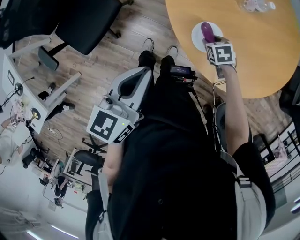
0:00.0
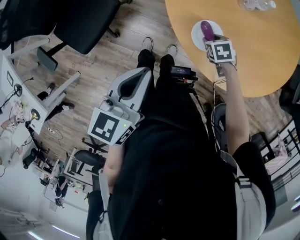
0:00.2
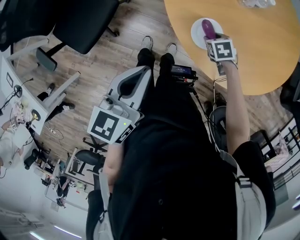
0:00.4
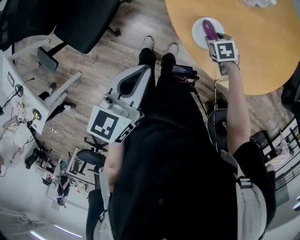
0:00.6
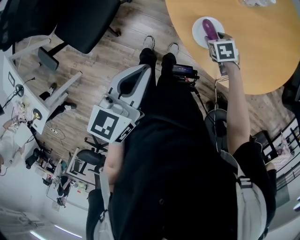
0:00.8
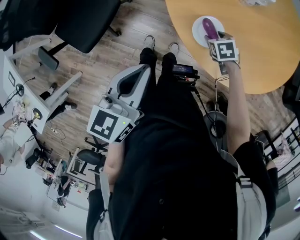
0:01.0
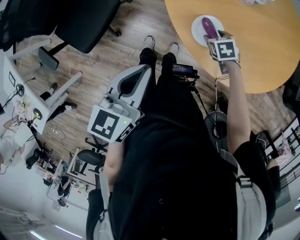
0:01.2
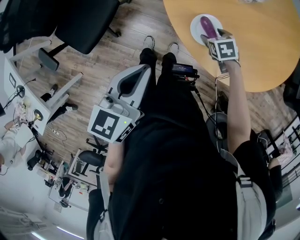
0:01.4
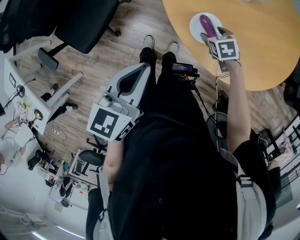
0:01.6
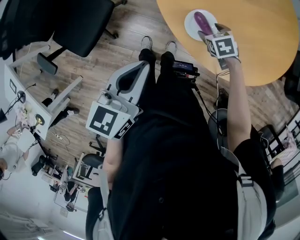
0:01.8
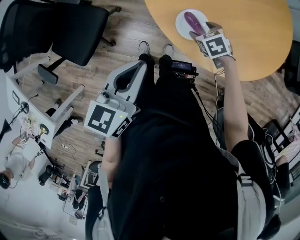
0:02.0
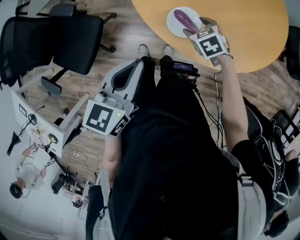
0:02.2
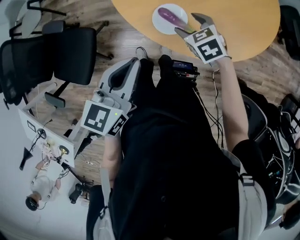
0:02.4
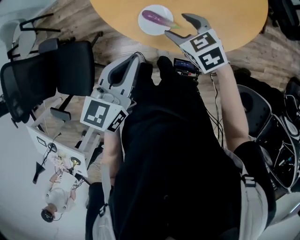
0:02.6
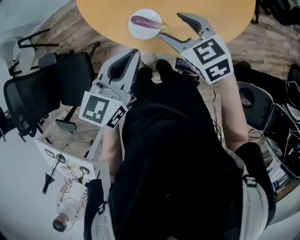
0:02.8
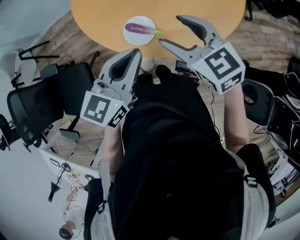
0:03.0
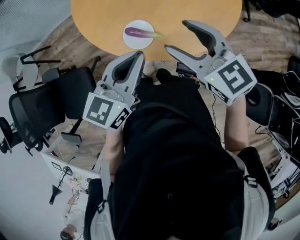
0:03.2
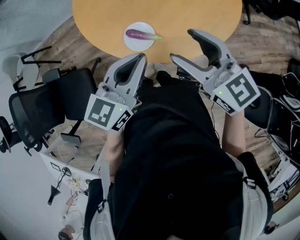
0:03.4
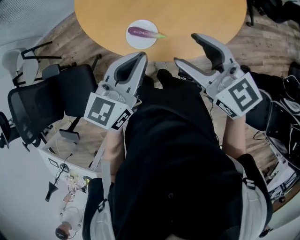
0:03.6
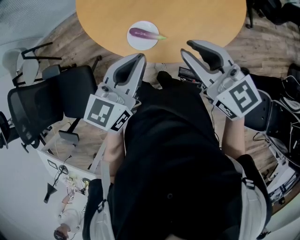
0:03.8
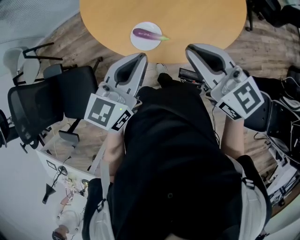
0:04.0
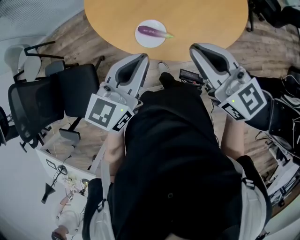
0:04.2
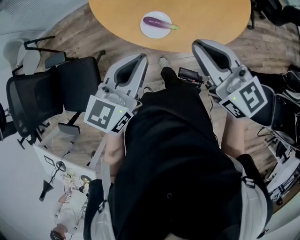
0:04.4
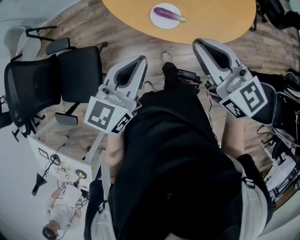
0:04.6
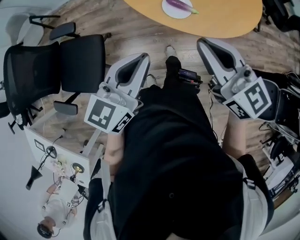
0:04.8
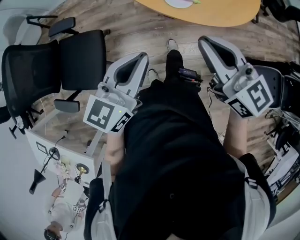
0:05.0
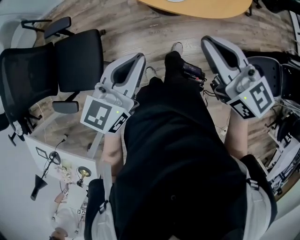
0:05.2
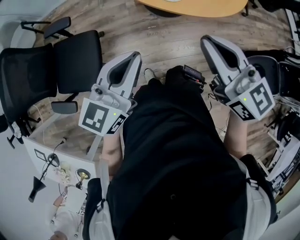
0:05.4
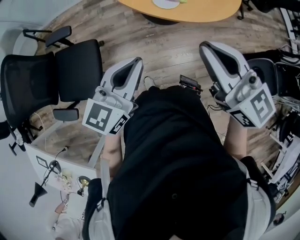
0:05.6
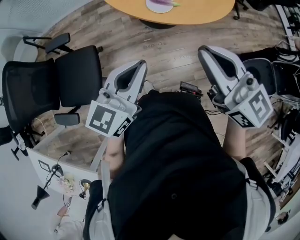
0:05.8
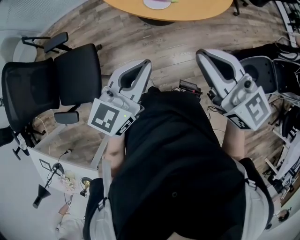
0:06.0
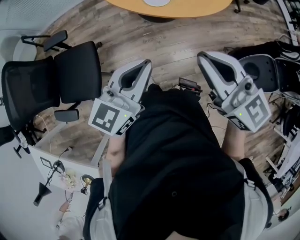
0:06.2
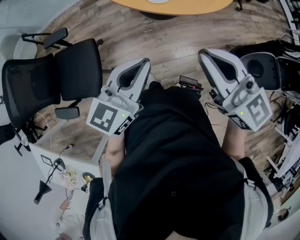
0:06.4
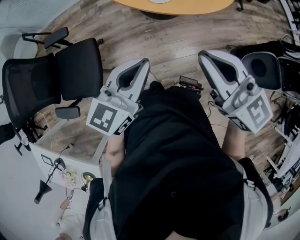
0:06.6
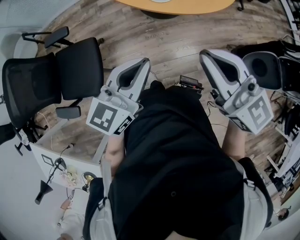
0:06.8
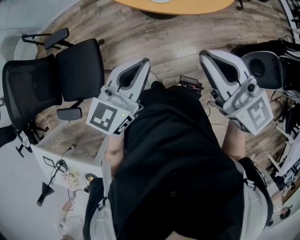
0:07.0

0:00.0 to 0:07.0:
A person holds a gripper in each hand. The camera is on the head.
0:00.0 to 0:01.4: The right gripper opens up.
0:01.4 to 0:02.8: The left gripper changes place by about 20 cm, and changes its angle by approximately 40 degrees, while the right gripper is displaced upward by roughly 20 cm, and tips its fingers upward by approximately 30 degrees.
0:02.8 to 0:04.2: The right gripper shifts about 15 cm upward and backward, changes its angle by some 30 degrees, and closes, while the left gripper is displaced upward by some 5 cm.
0:04.2 to 0:05.6: Both grippers travel together backward and to the left, roughly 30 cm.

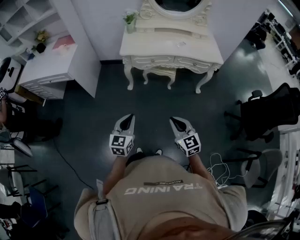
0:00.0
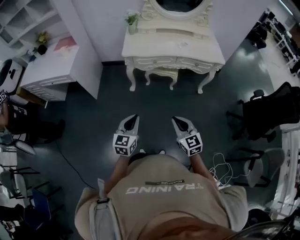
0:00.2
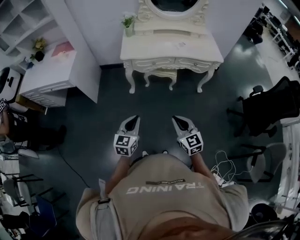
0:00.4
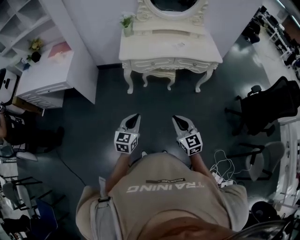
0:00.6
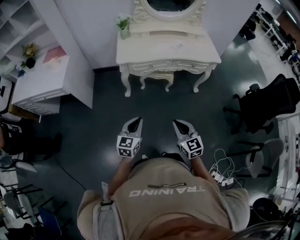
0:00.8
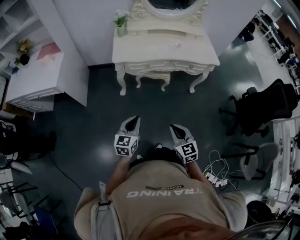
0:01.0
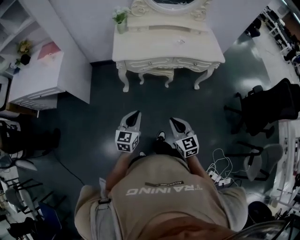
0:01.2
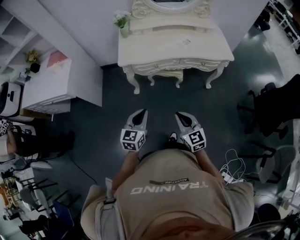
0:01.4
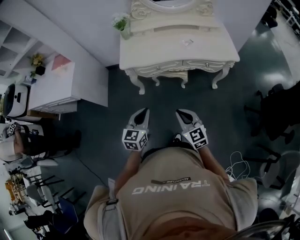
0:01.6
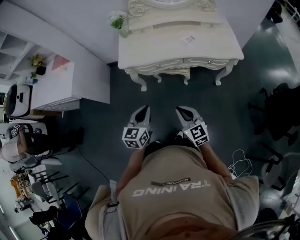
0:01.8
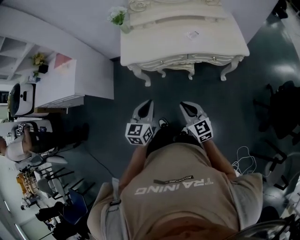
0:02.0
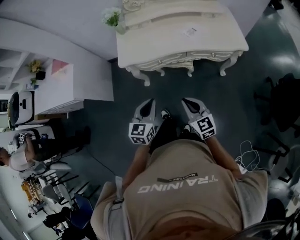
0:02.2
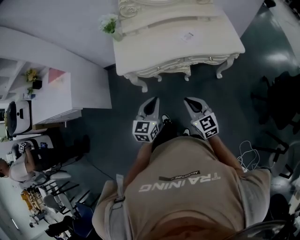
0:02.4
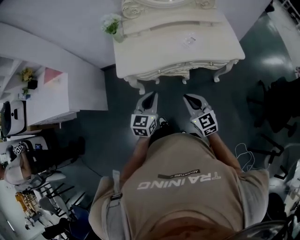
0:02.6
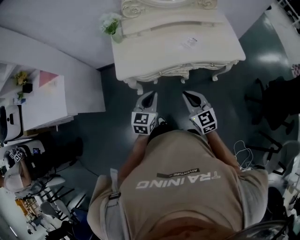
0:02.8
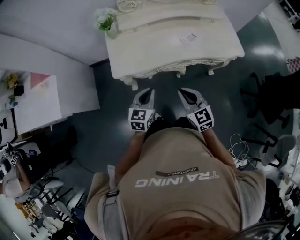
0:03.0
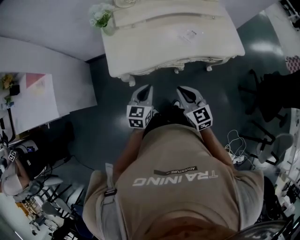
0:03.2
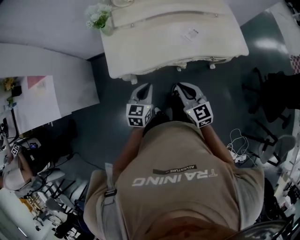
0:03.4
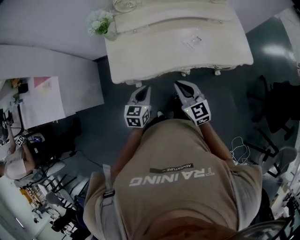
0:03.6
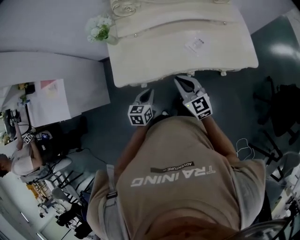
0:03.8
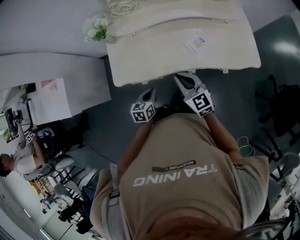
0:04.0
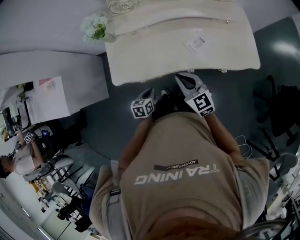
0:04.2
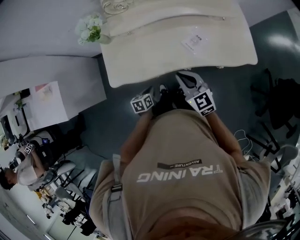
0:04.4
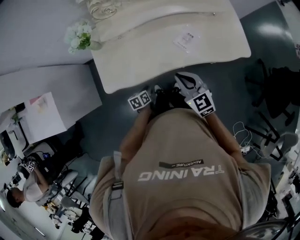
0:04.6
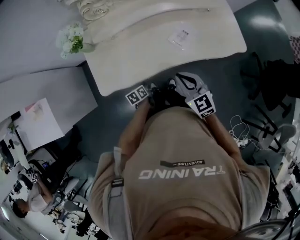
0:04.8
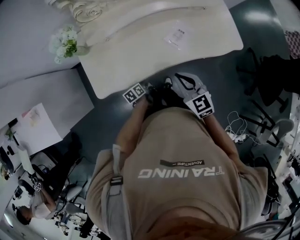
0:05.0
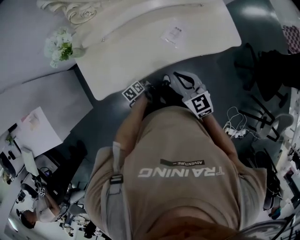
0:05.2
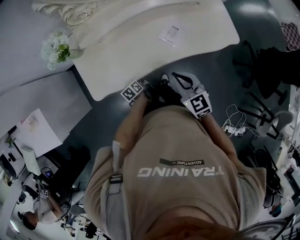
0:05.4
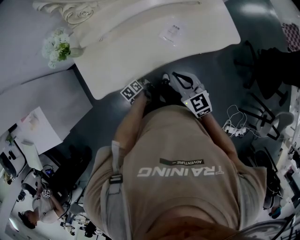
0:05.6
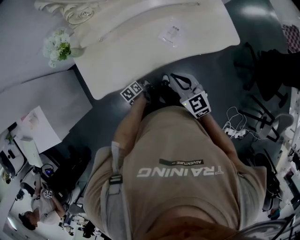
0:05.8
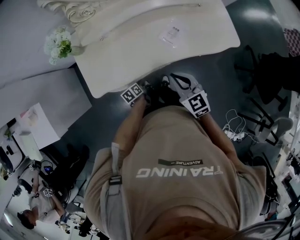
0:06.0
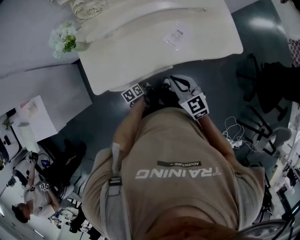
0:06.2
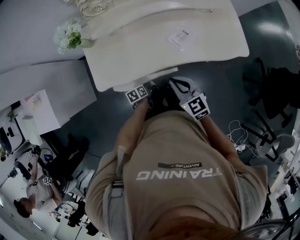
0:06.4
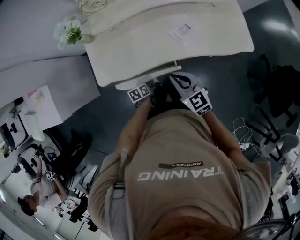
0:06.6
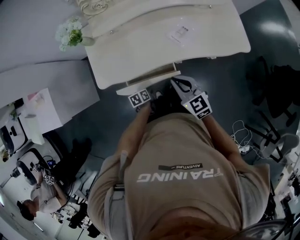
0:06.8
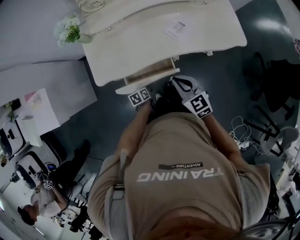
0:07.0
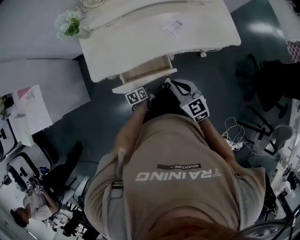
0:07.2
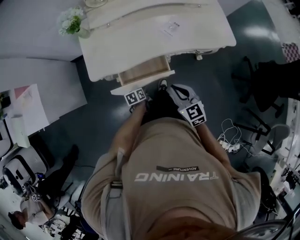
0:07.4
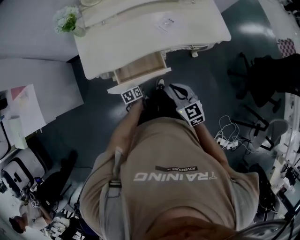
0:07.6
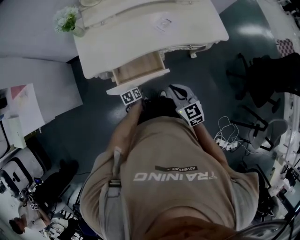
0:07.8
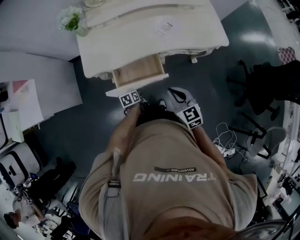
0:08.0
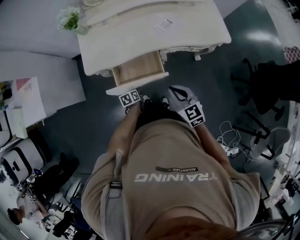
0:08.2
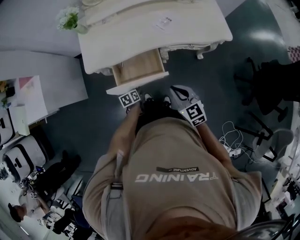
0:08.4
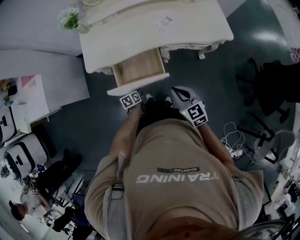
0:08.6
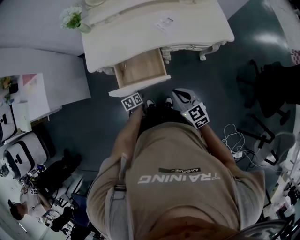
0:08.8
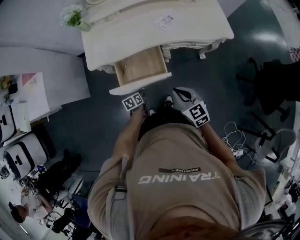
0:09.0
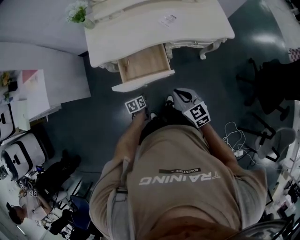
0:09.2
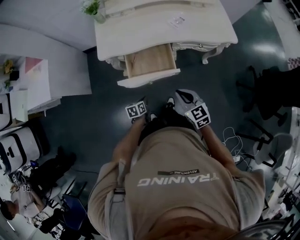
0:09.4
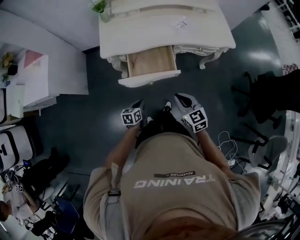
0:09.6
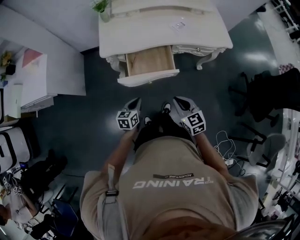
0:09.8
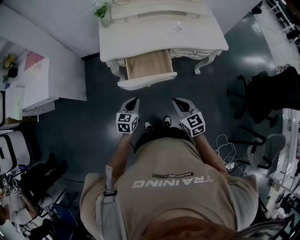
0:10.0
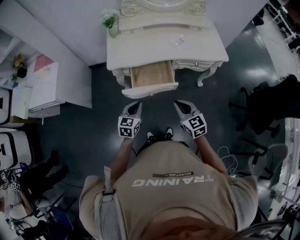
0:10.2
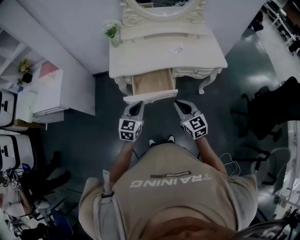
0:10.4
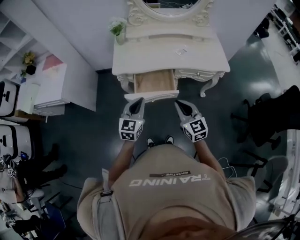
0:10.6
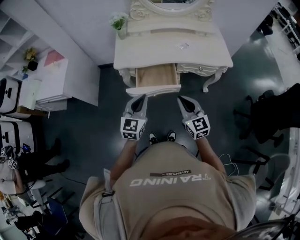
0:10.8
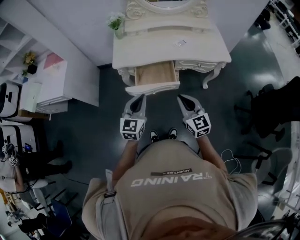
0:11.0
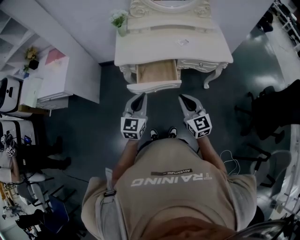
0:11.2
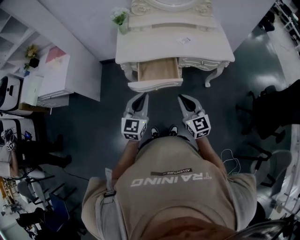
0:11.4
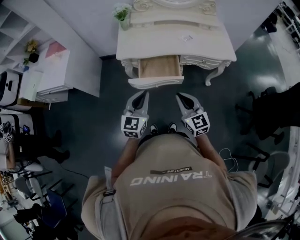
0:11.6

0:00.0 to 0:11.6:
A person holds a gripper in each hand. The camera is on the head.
0:00.0 to 0:01.4: The two grippers go approximately 20 cm forward.
0:01.4 to 0:02.8: Both grippers travel together forward, approximately 25 cm.
0:02.8 to 0:04.4: The right gripper heads forward, covering approximately 25 cm. Meanwhile the left gripper goes about 30 cm downward and forward, and rotates some 40 degrees.
0:04.4 to 0:05.8: The right gripper moves approximately 5 cm, while the left gripper moves downward and forward, approximately 10 cm, and opens.
0:05.8 to 0:07.2: Both grippers move backward, approximately 15 cm.
0:07.2 to 0:08.8: The right gripper is displaced backward and to the right by some 15 cm. The left gripper shifts approximately 10 cm backward.
0:08.8 to 0:10.2: The left gripper travels upward and backward by some 30 cm, turns by approximately 50 degrees, and closes up, while the right gripper heads backward, to the left and upward, covering roughly 20 cm.
0:10.2 to 0:11.6: The right gripper shifts about 5 cm upward. The left gripper goes about 15 cm upward, and changes its angle by some 20 degrees.

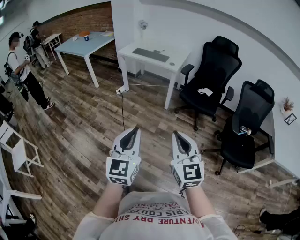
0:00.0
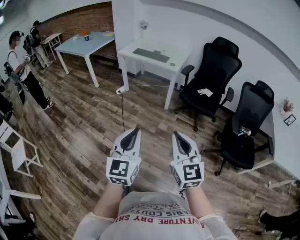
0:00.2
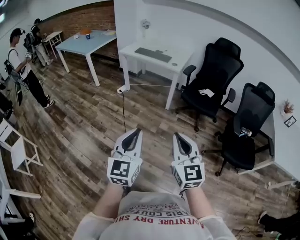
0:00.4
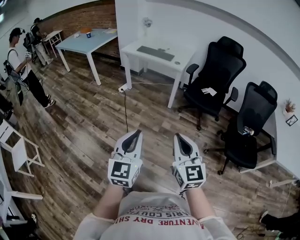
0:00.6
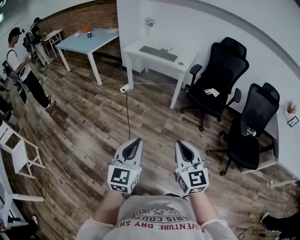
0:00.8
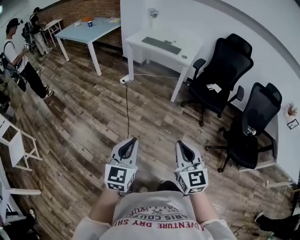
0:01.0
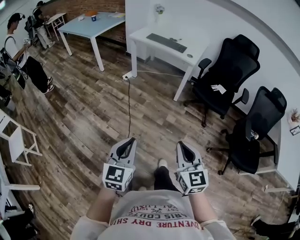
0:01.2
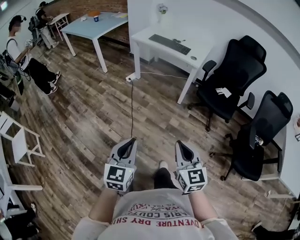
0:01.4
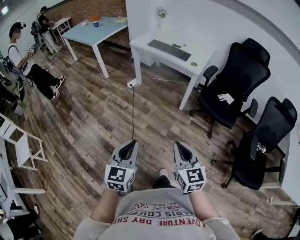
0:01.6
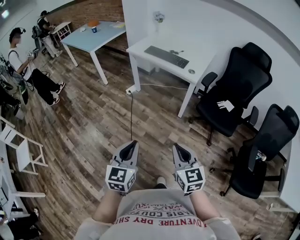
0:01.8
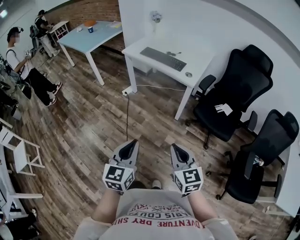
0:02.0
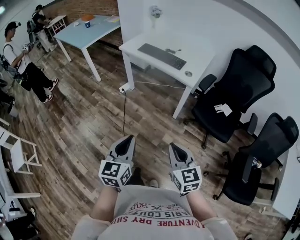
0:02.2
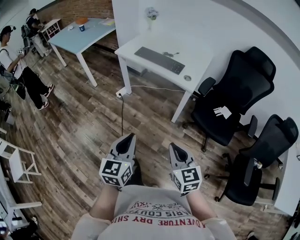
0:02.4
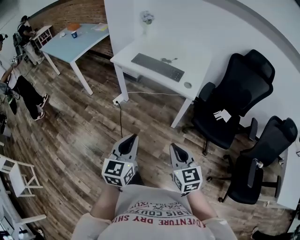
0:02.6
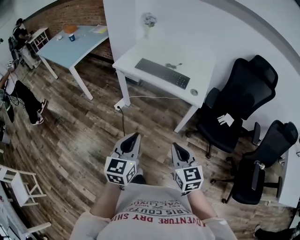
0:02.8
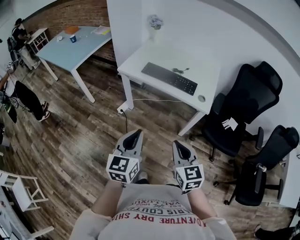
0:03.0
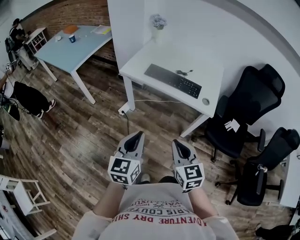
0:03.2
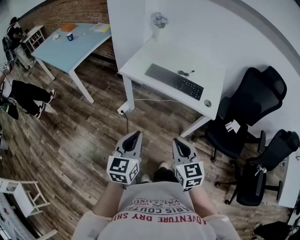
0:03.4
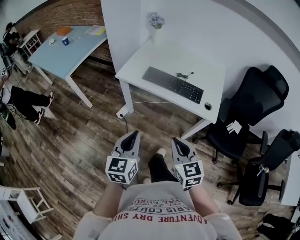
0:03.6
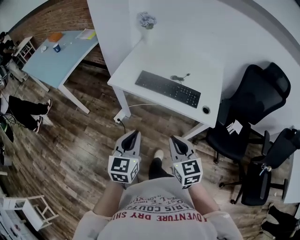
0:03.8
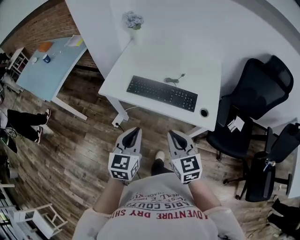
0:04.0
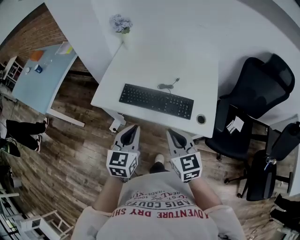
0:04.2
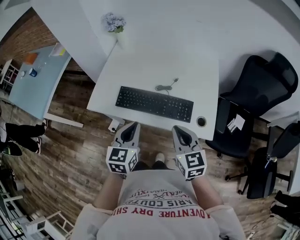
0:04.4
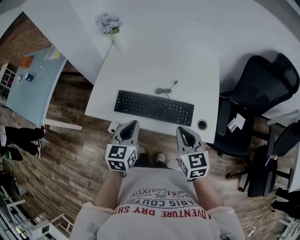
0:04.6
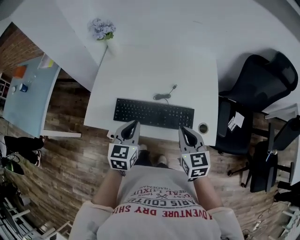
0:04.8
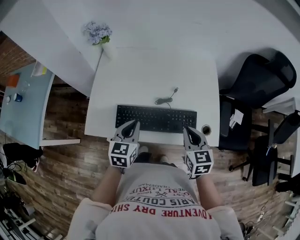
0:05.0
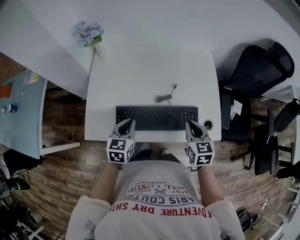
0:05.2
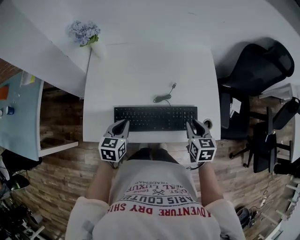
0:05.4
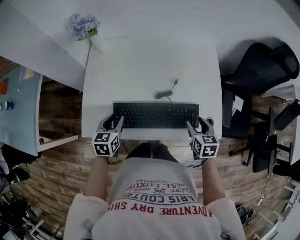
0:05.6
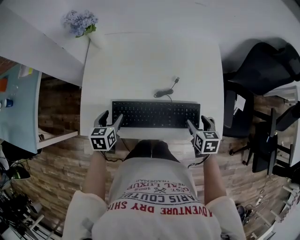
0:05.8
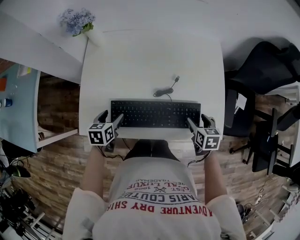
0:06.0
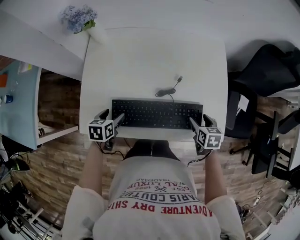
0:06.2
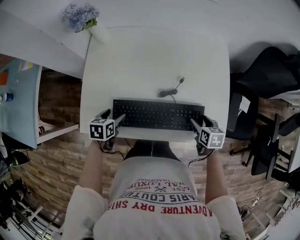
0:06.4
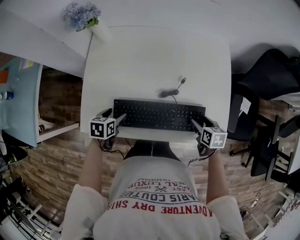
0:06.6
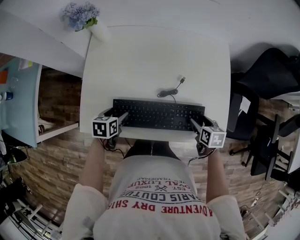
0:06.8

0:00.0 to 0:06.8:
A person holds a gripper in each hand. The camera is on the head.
0:00.0 to 0:01.4: The right gripper goes approximately 20 cm forward, downward and to the left. The left gripper is displaced downward, forward and to the left by roughly 20 cm.
0:01.4 to 0:02.8: The two grippers travel together, forward, roughly 50 cm.
0:02.8 to 0:04.0: Both grippers move forward, some 30 cm.
0:04.0 to 0:05.4: The right gripper changes place by some 30 cm, and rotates about 40 degrees. Meanwhile the left gripper moves about 35 cm, and changes its angle by about 30 degrees.
0:05.4 to 0:06.8: Both grippers travel together downward, roughly 10 cm. The right gripper turns by roughly 20 degrees, and opens up, while the left gripper swivels about 20 degrees, and opens up.
